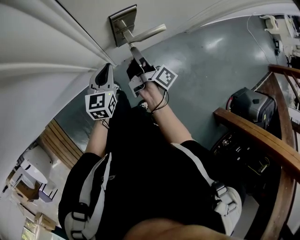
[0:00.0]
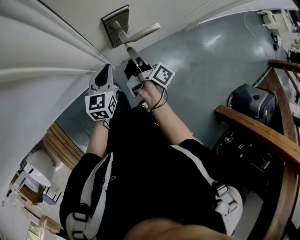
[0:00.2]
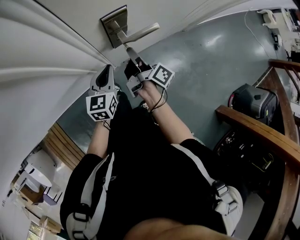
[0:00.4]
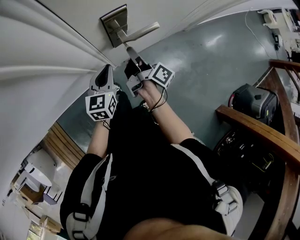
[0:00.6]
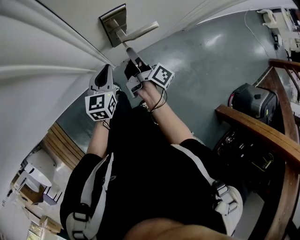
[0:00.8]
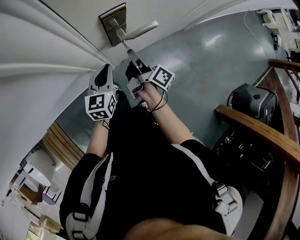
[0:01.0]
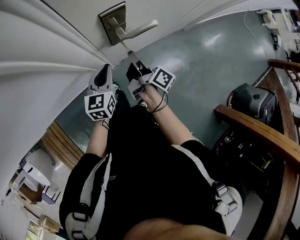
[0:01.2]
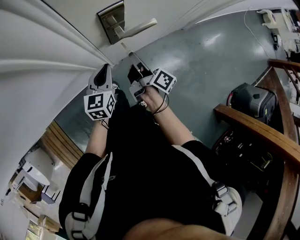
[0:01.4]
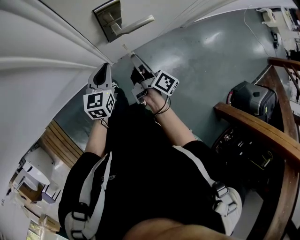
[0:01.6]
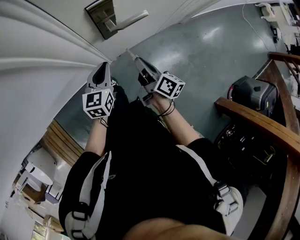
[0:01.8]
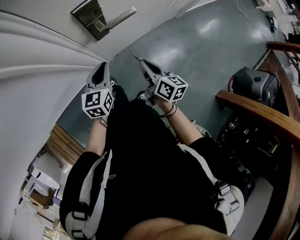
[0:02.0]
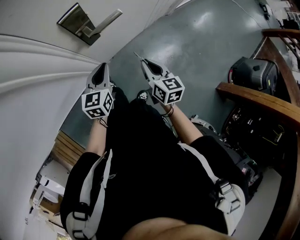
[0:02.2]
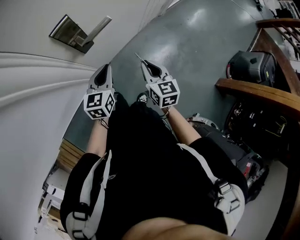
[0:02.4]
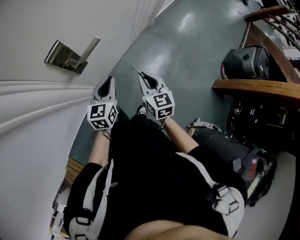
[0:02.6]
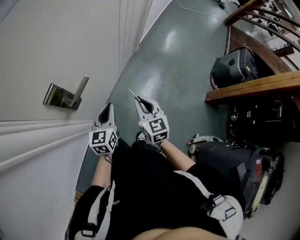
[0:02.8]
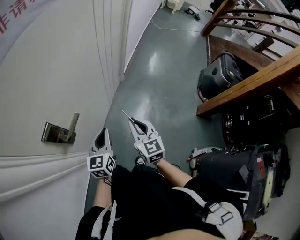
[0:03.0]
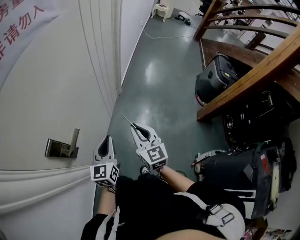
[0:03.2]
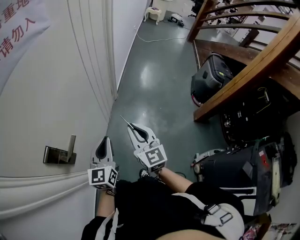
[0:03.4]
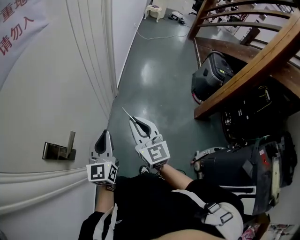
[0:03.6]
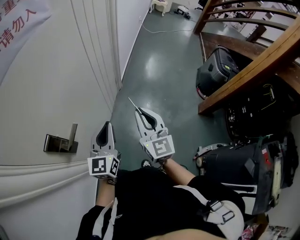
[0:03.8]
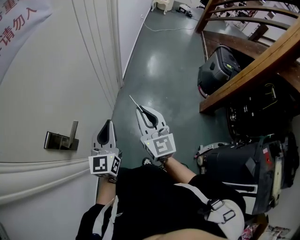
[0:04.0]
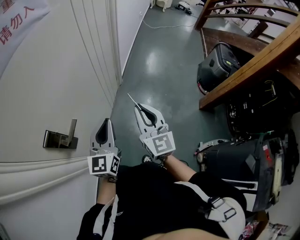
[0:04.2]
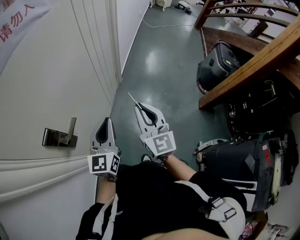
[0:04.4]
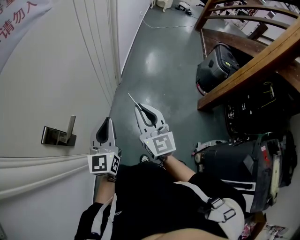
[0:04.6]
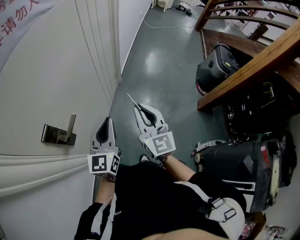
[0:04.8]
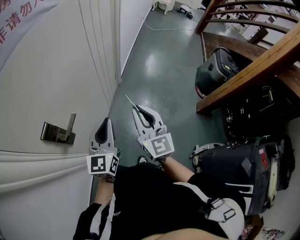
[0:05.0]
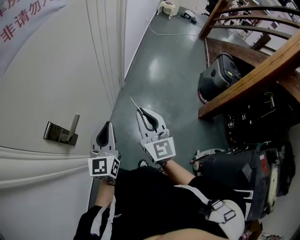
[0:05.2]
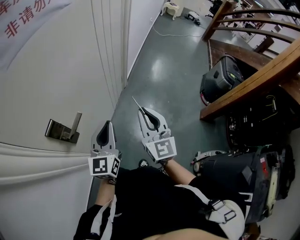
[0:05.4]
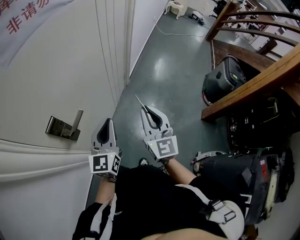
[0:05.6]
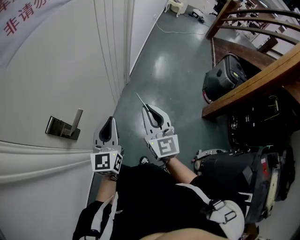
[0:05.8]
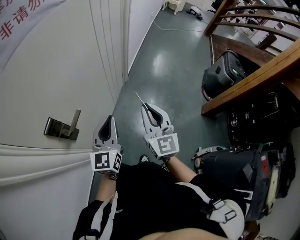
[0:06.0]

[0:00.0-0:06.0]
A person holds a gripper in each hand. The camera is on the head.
0.0 to 1.6 s: The right gripper moves backward, roughly 5 cm.
1.6 to 3.0 s: The left gripper moves some 25 cm, and changes its angle by about 30 degrees. Meanwhile the right gripper shifts by approximately 25 cm, and twists about 60 degrees counterclockwise, seen from behind.
3.0 to 4.4 s: Both grippers move upward and to the right, roughly 15 cm.
4.4 to 6.0 s: There are only small adjustments of the grippers.

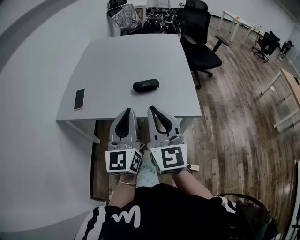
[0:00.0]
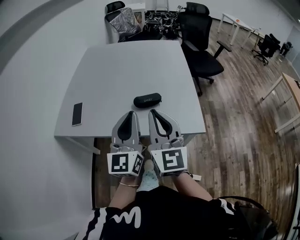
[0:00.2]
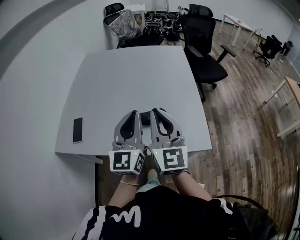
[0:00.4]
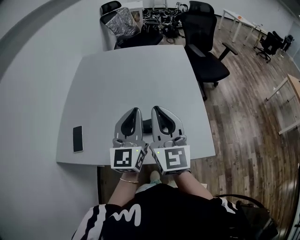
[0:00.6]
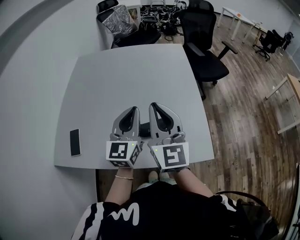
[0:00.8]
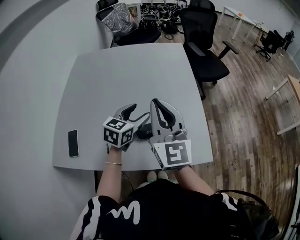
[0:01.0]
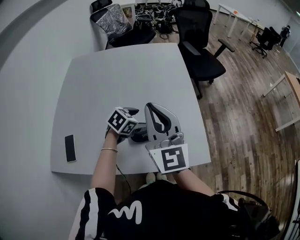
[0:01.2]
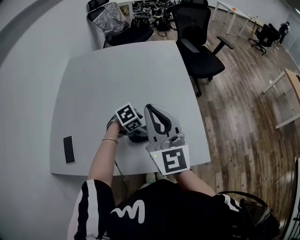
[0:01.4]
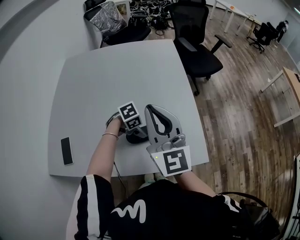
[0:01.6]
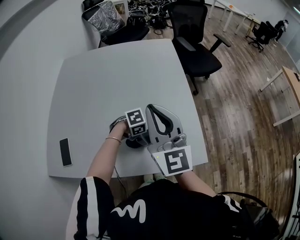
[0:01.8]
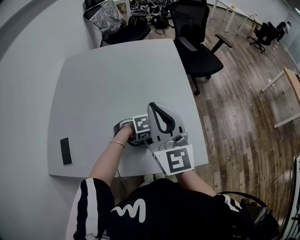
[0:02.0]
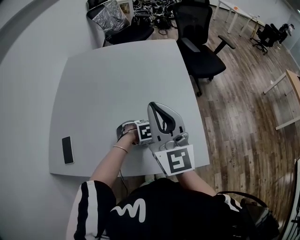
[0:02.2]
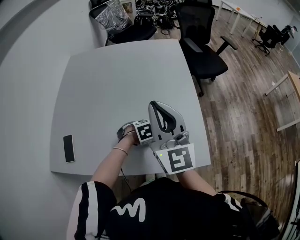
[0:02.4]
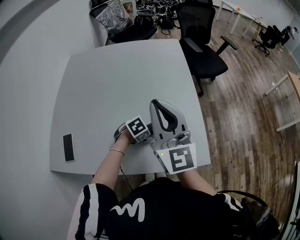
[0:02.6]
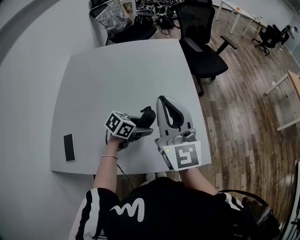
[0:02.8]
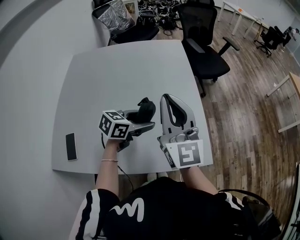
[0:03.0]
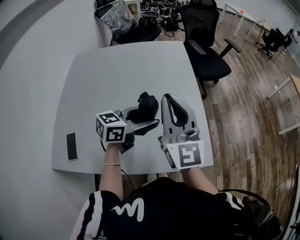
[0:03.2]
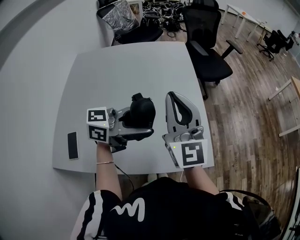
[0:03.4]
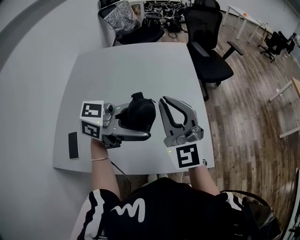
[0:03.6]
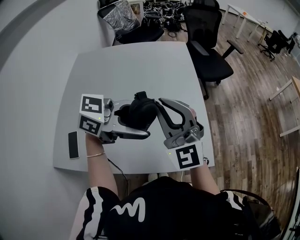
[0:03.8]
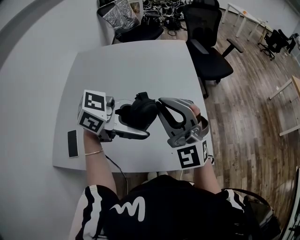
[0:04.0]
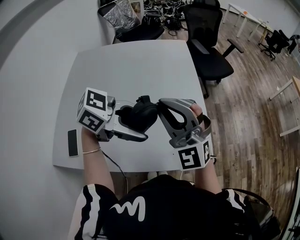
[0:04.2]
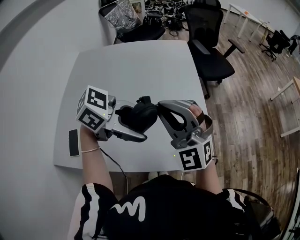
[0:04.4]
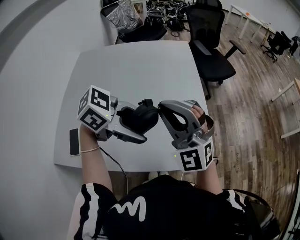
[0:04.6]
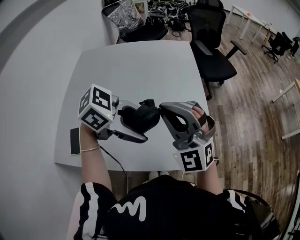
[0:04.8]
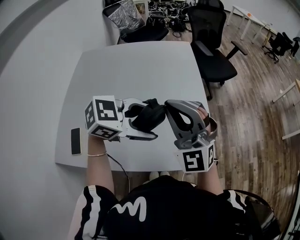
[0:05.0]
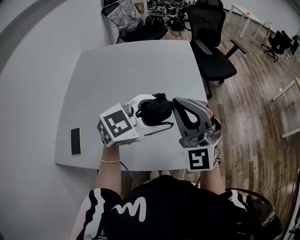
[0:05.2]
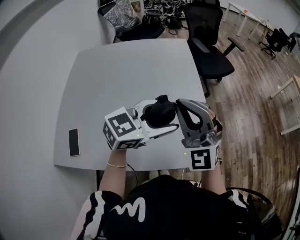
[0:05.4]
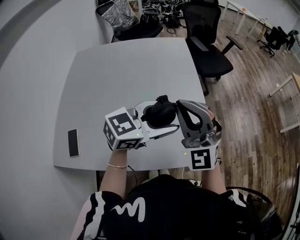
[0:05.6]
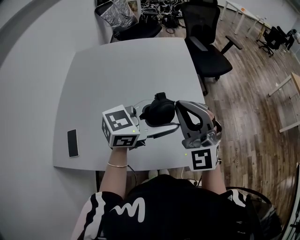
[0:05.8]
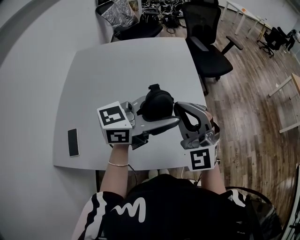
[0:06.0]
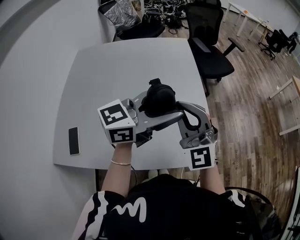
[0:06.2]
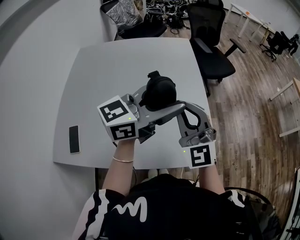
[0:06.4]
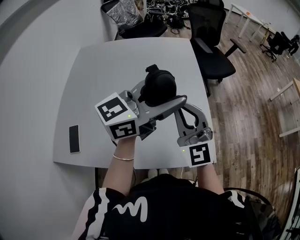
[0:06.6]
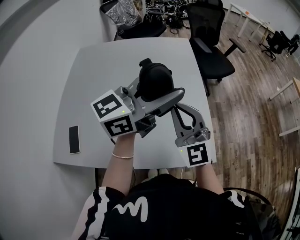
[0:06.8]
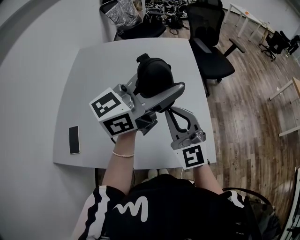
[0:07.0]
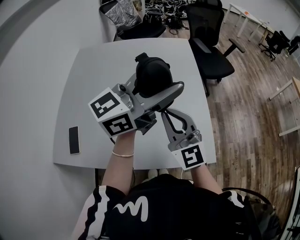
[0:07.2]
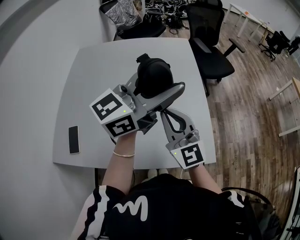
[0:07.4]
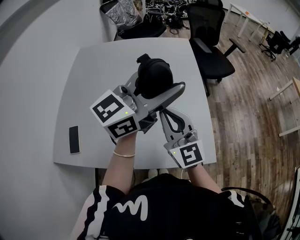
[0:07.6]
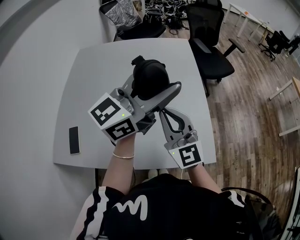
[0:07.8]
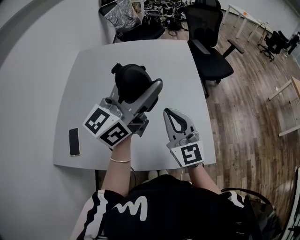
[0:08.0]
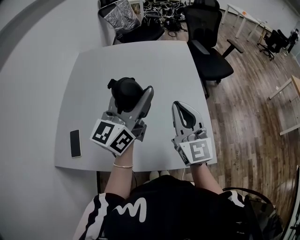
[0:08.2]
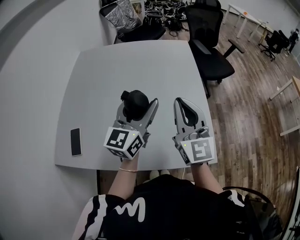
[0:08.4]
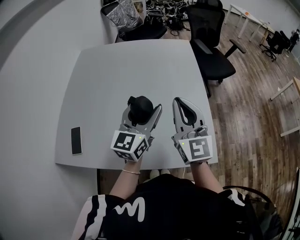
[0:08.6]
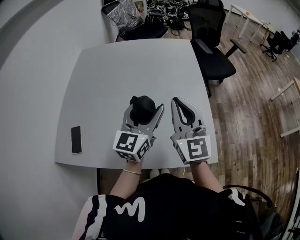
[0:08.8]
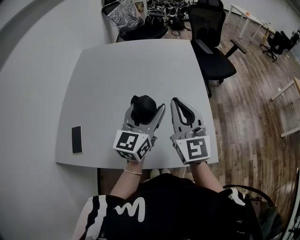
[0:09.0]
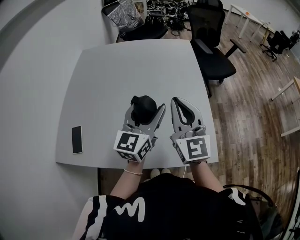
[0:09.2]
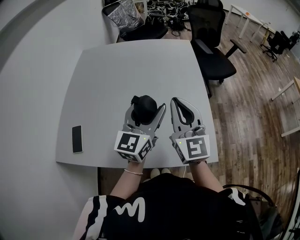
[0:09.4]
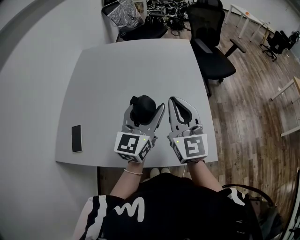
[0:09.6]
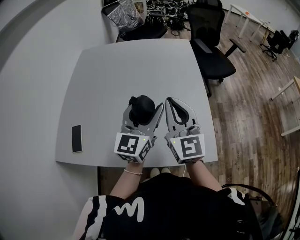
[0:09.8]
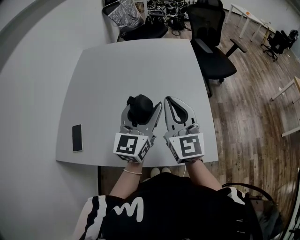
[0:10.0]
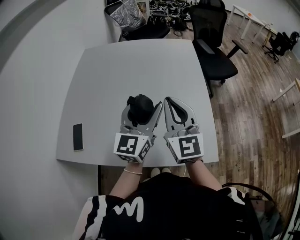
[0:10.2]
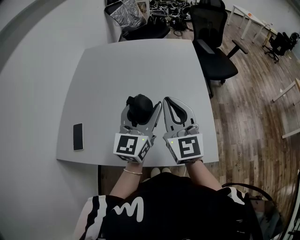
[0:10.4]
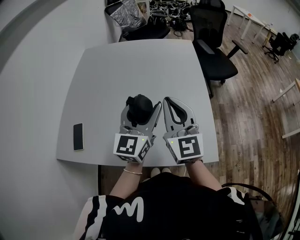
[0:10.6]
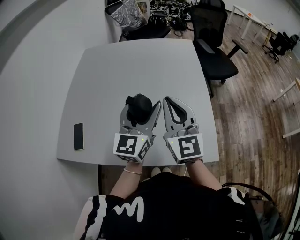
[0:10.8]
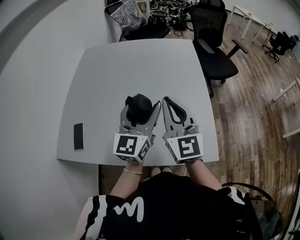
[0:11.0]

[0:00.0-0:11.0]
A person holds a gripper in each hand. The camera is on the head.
0.0 to 1.6 s: The left gripper changes place by approximately 40 cm, angles its fingers downward, by roughly 70 degrees, and opens up, while the right gripper moves approximately 35 cm.
1.6 to 3.2 s: The left gripper moves upward, roughly 20 cm, and tips its fingers upward by about 50 degrees.
3.2 to 4.8 s: The right gripper shifts by roughly 5 cm, and twists approximately 50 degrees counterclockwise, seen from behind; the left gripper shifts by roughly 10 cm, and changes its angle by about 40 degrees.
4.8 to 6.2 s: The left gripper shifts by some 10 cm, and tips its fingers upward by about 40 degrees.
6.2 to 7.8 s: The left gripper heads upward, covering roughly 5 cm, and rotates approximately 20 degrees, while the right gripper ends up approximately 5 cm from where it was, and changes its angle by some 30 degrees.
7.8 to 9.4 s: The left gripper shifts roughly 15 cm downward, and rotates roughly 30 degrees.
9.4 to 11.0 s: The grippers move only a little.

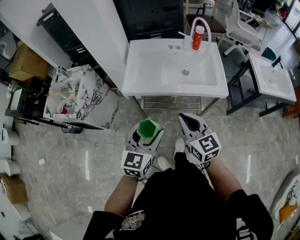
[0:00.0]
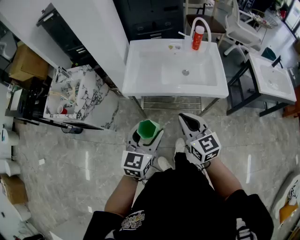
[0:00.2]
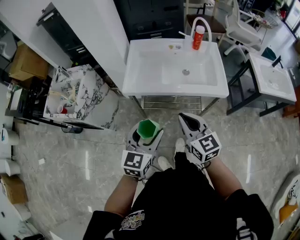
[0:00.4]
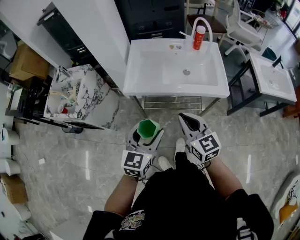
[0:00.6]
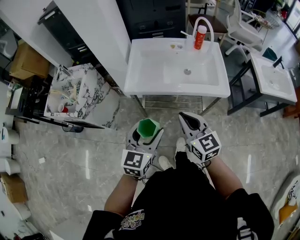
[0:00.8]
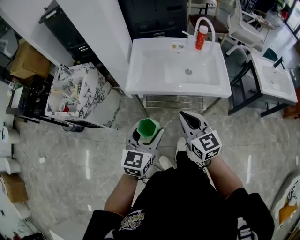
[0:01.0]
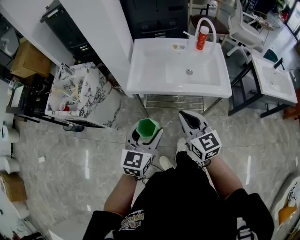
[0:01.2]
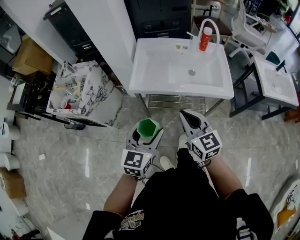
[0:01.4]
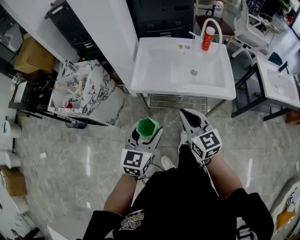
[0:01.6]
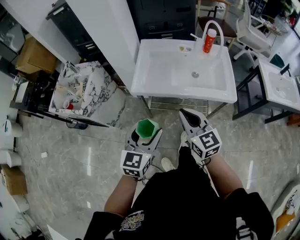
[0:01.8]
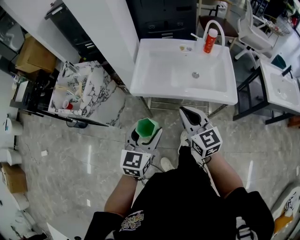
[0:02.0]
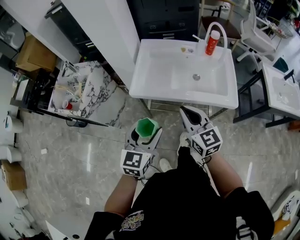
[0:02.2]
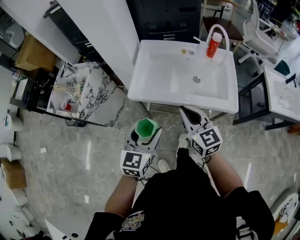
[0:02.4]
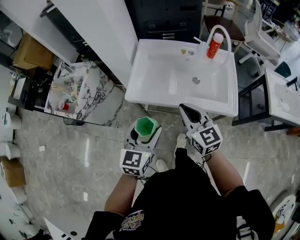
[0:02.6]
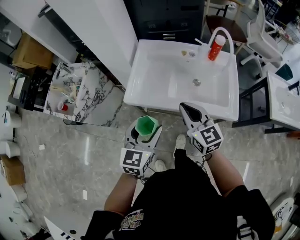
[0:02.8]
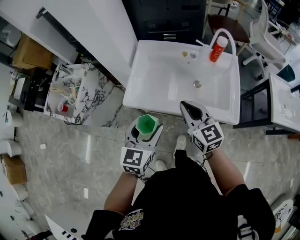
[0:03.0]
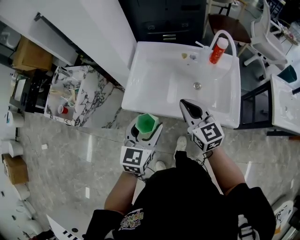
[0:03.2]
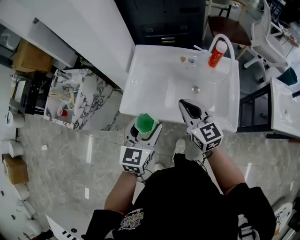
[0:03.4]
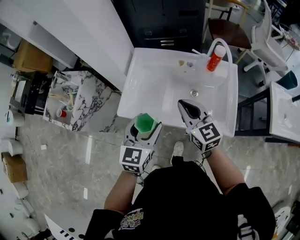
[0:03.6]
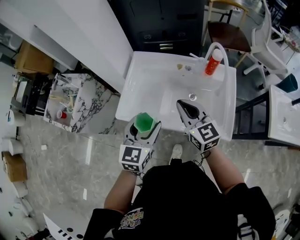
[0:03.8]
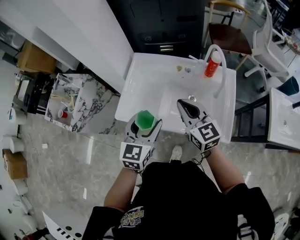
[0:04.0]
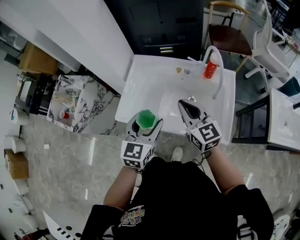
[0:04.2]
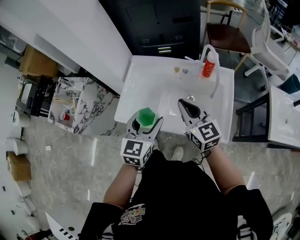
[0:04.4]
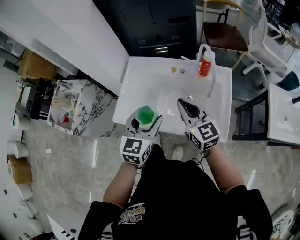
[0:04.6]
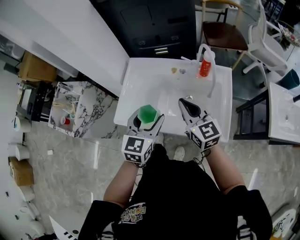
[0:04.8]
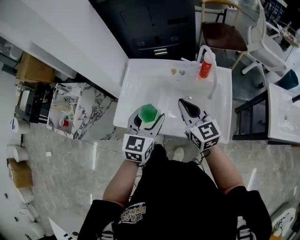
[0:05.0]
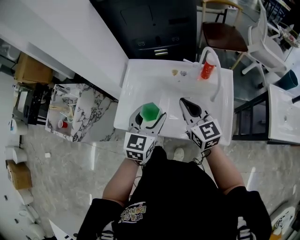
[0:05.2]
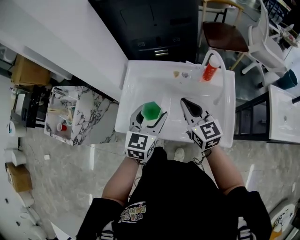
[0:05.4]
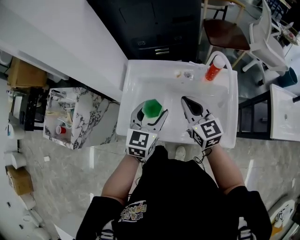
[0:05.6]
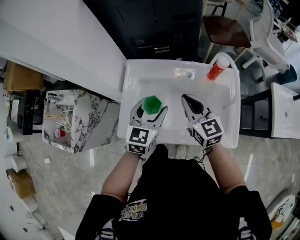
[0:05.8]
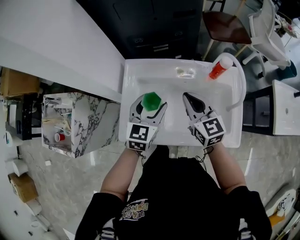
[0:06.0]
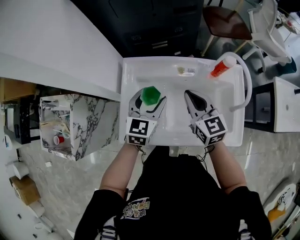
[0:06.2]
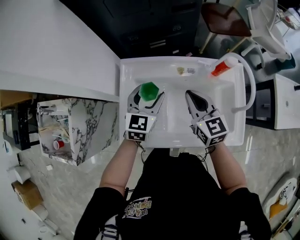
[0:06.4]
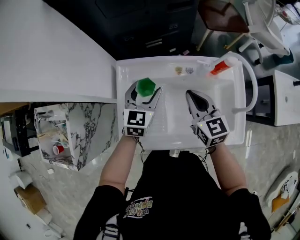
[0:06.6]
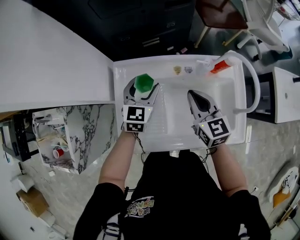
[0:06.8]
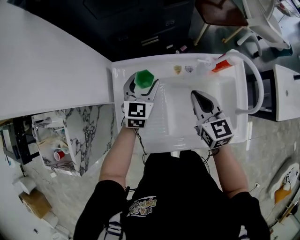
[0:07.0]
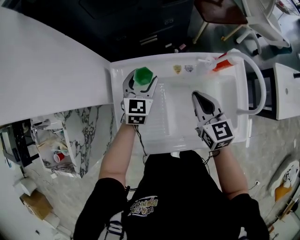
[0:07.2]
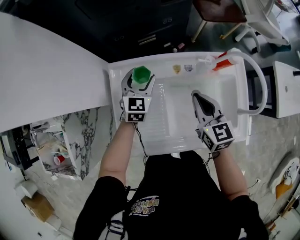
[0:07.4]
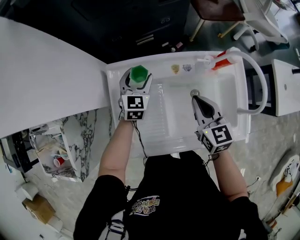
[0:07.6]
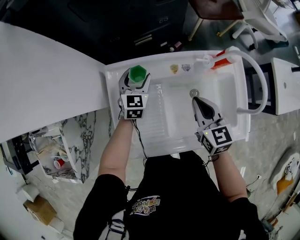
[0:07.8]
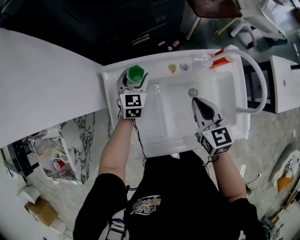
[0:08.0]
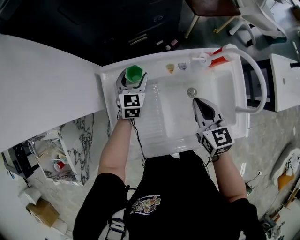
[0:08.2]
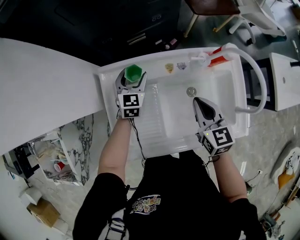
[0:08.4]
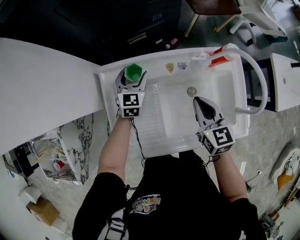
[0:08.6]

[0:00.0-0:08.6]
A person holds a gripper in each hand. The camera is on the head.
0.0 to 1.4 s: There are only small adjustments of the grippers.
1.4 to 2.8 s: The grippers both shift forward by approximately 15 cm.
2.8 to 4.4 s: Both grippers travel together forward and to the right, roughly 15 cm.
4.4 to 5.8 s: Both grippers move forward, about 10 cm.
5.8 to 7.2 s: The right gripper heads downward and forward, covering approximately 10 cm. The left gripper is displaced forward and downward by some 20 cm.
7.2 to 8.6 s: The left gripper moves downward, some 5 cm.
